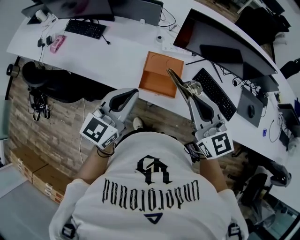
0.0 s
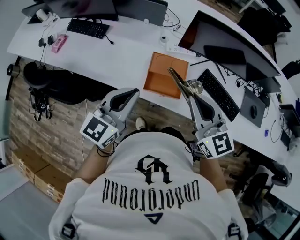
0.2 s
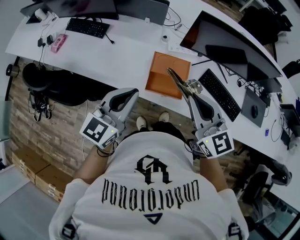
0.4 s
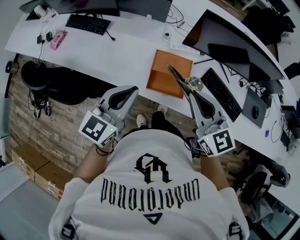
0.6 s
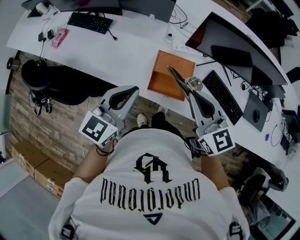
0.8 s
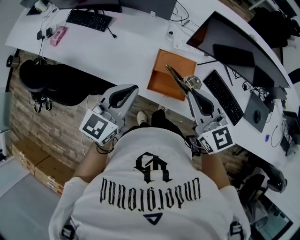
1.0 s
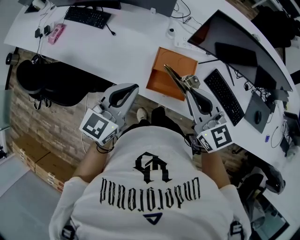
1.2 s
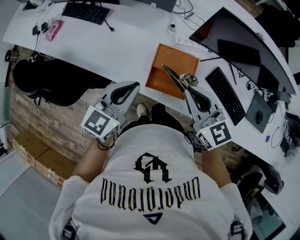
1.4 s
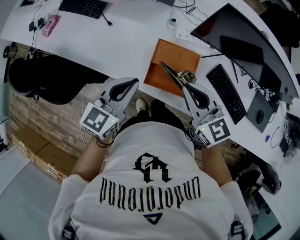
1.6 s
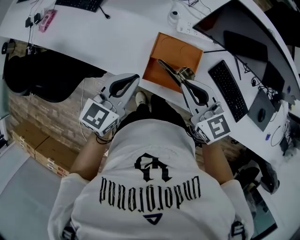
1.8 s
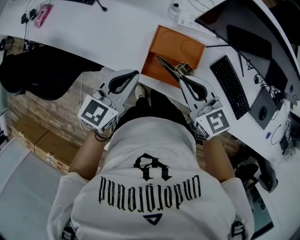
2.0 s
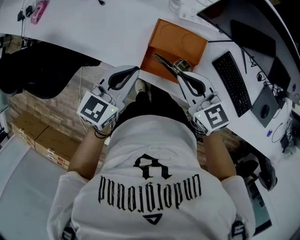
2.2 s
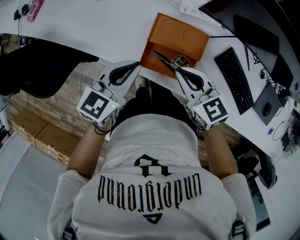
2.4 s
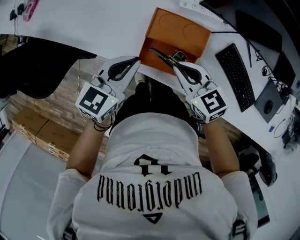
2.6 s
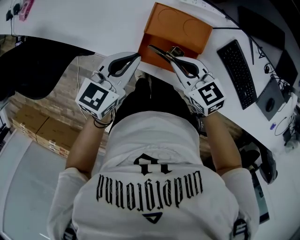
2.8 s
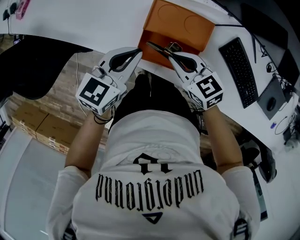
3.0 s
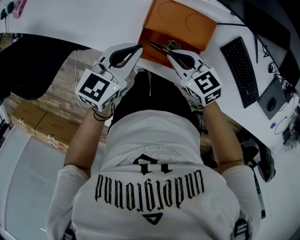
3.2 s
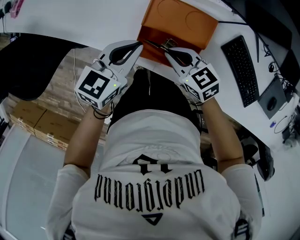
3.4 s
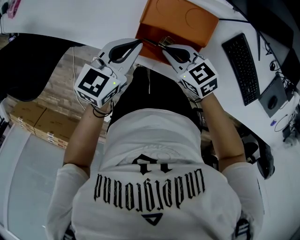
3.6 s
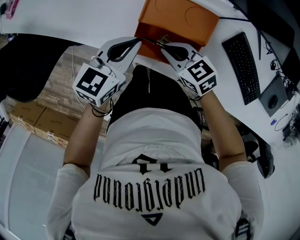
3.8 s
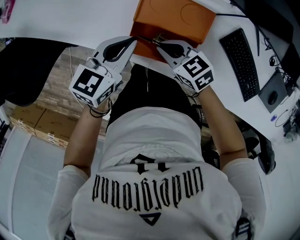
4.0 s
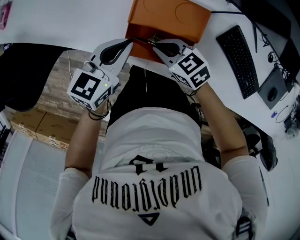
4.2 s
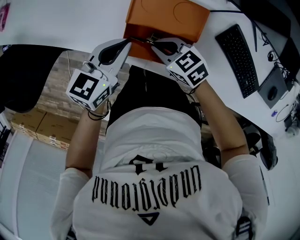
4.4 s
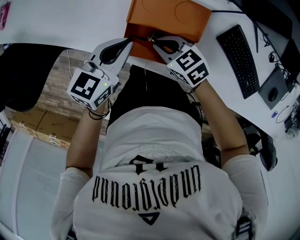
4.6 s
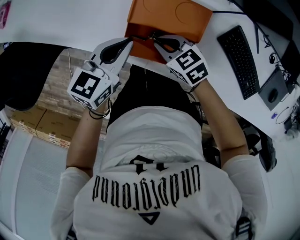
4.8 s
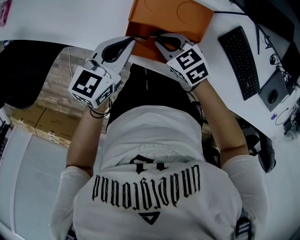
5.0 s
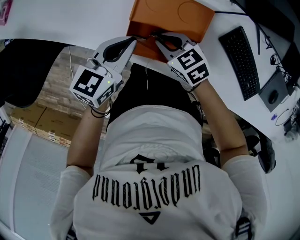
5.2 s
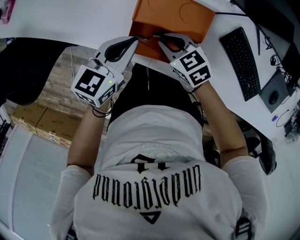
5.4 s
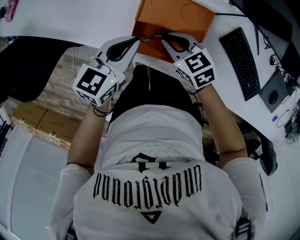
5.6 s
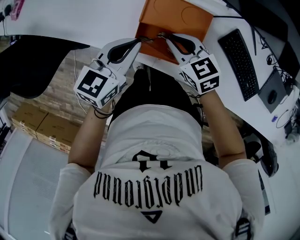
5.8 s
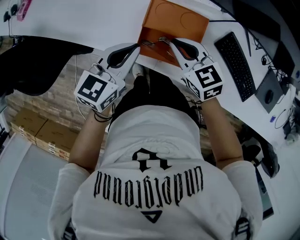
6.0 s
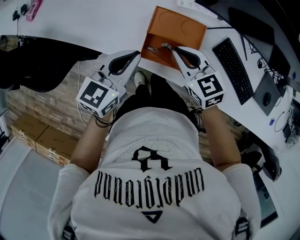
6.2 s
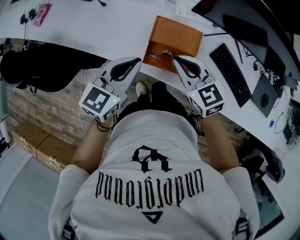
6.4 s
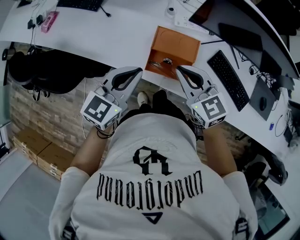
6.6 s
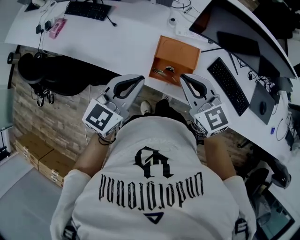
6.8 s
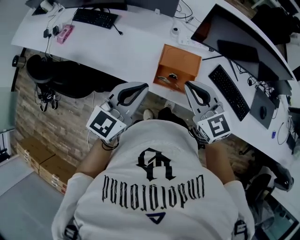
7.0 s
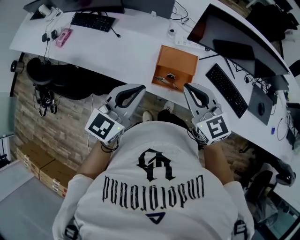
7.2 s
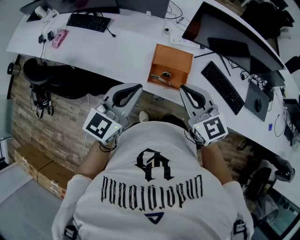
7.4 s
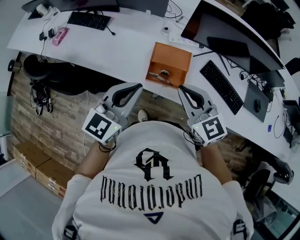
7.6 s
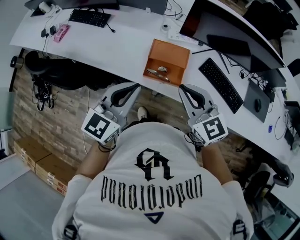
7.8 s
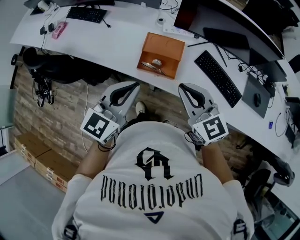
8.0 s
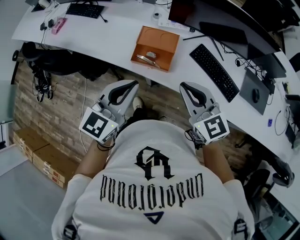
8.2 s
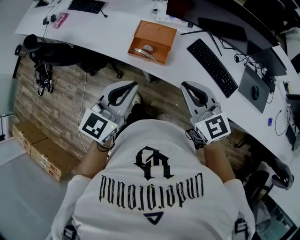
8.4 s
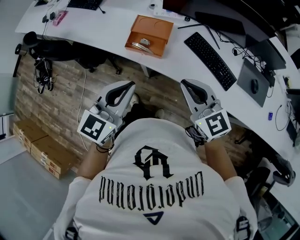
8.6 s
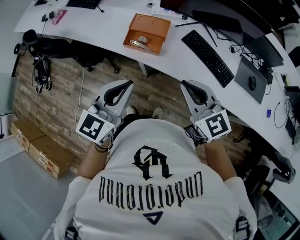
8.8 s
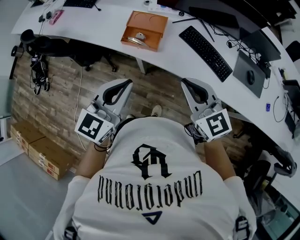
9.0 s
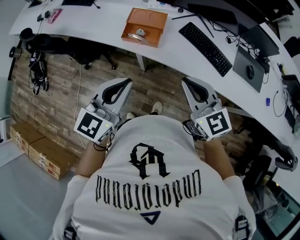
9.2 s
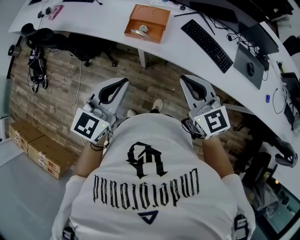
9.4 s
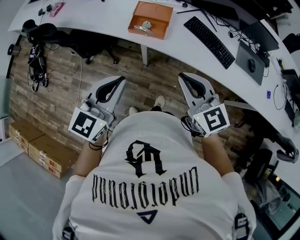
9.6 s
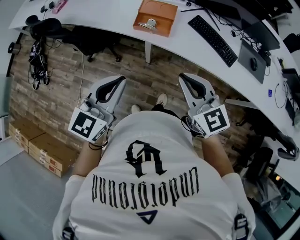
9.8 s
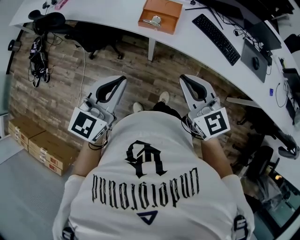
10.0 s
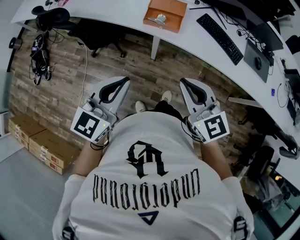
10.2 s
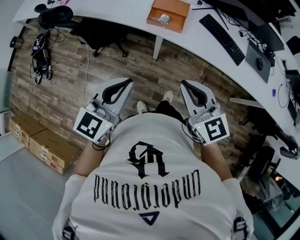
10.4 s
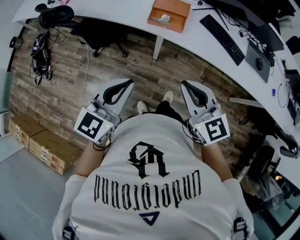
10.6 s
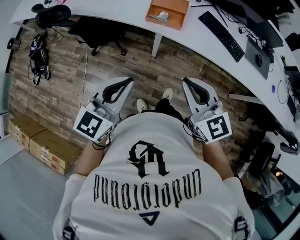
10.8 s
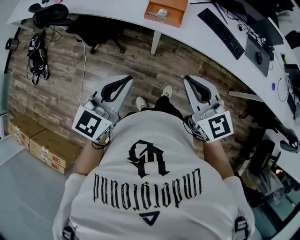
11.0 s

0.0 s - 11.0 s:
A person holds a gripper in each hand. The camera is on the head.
0.0 s - 1.6 s: Both grippers move downward and forward, roughly 15 cm.
1.6 s - 3.2 s: The grippers both shift downward by roughly 20 cm. The right gripper changes its angle by about 30 degrees.
3.2 s - 4.8 s: The right gripper shifts approximately 5 cm downward.
4.8 s - 6.2 s: The two grippers go approximately 15 cm upward. The right gripper changes its angle by roughly 20 degrees.
6.2 s - 7.8 s: Both grippers move upward and backward, some 25 cm. The right gripper rotates about 20 degrees.
7.8 s - 9.4 s: The left gripper heads backward, covering some 25 cm; the right gripper travels backward and to the right by some 25 cm.
9.4 s - 11.0 s: Both grippers travel together to the left and backward, roughly 15 cm.

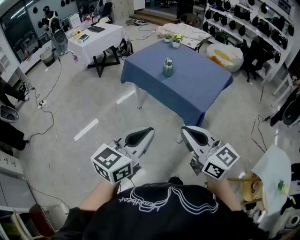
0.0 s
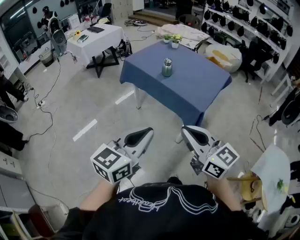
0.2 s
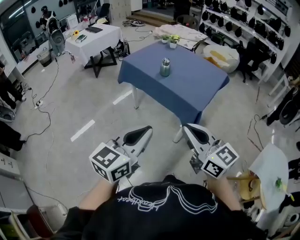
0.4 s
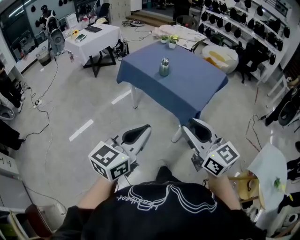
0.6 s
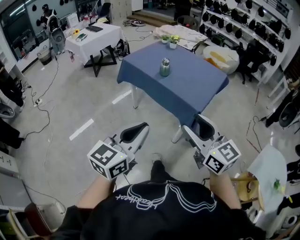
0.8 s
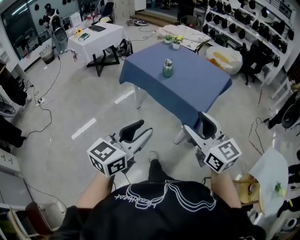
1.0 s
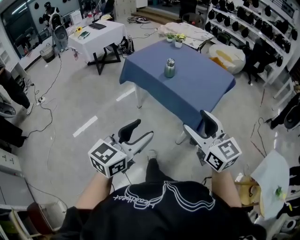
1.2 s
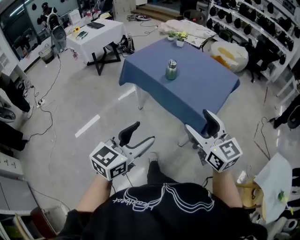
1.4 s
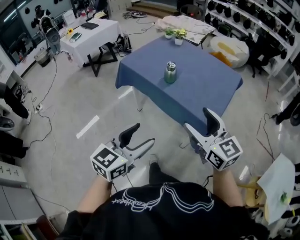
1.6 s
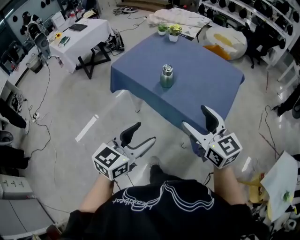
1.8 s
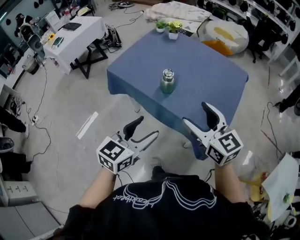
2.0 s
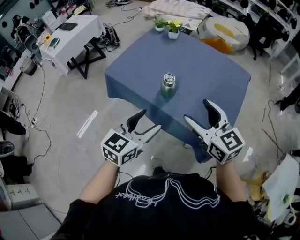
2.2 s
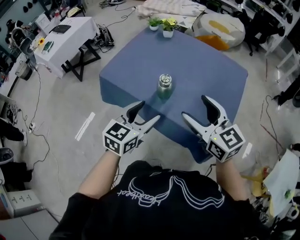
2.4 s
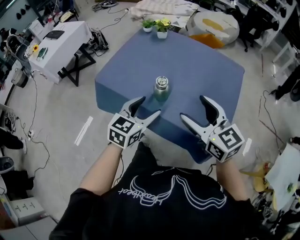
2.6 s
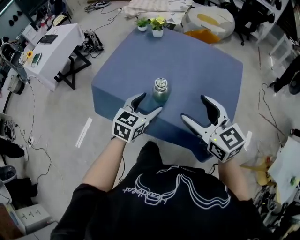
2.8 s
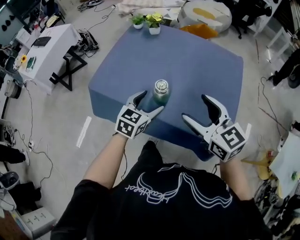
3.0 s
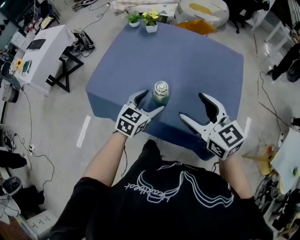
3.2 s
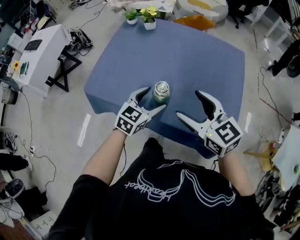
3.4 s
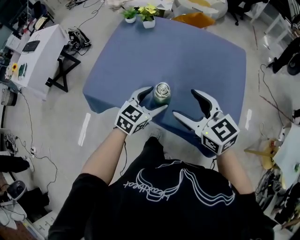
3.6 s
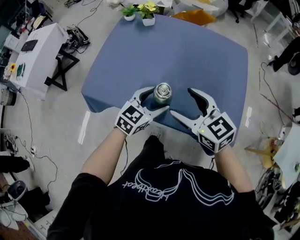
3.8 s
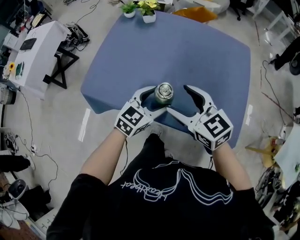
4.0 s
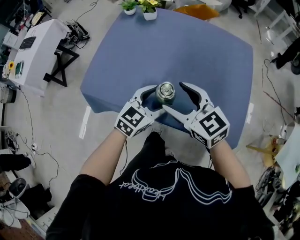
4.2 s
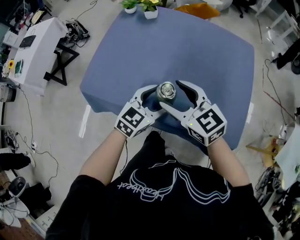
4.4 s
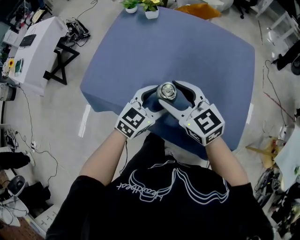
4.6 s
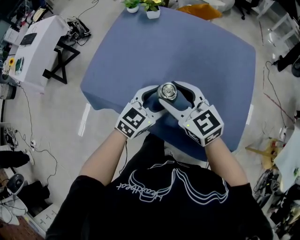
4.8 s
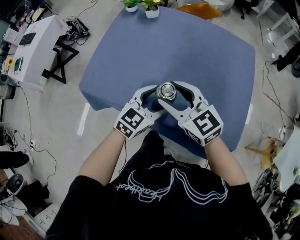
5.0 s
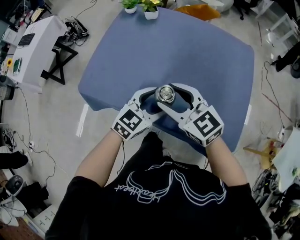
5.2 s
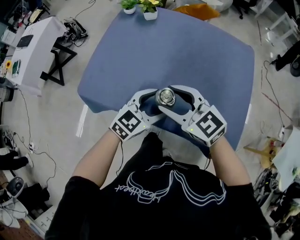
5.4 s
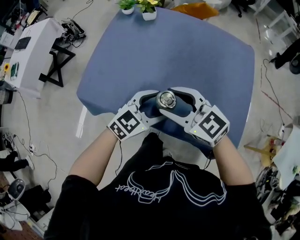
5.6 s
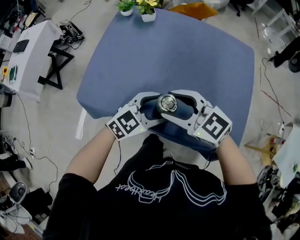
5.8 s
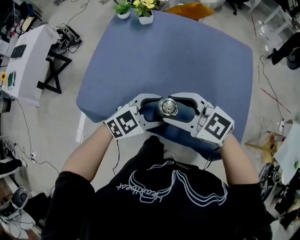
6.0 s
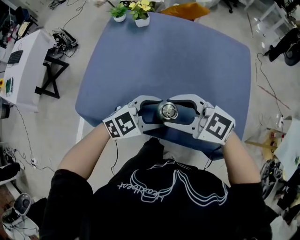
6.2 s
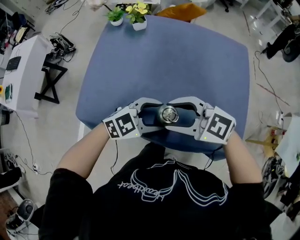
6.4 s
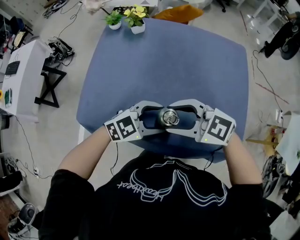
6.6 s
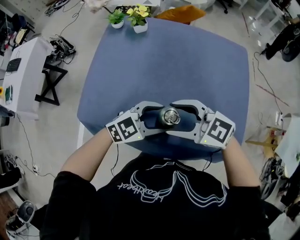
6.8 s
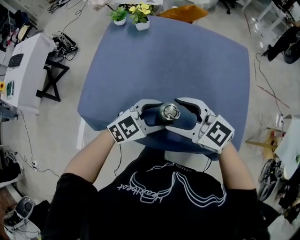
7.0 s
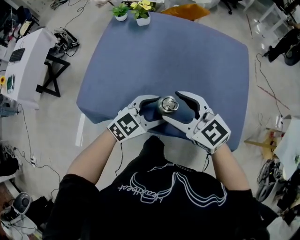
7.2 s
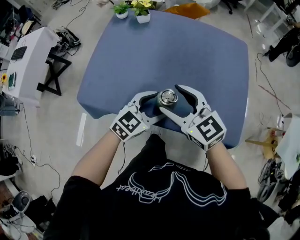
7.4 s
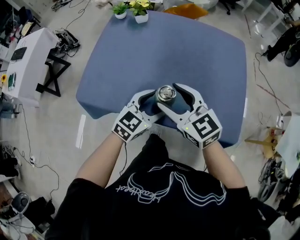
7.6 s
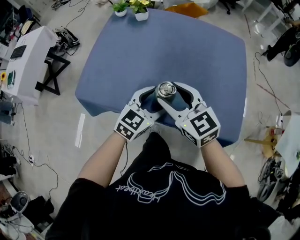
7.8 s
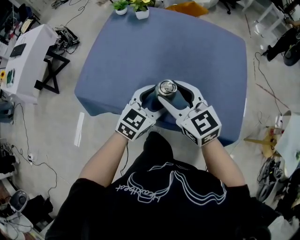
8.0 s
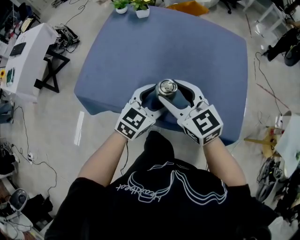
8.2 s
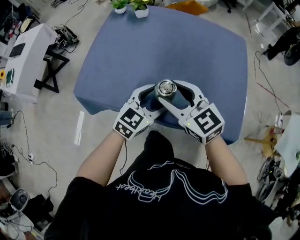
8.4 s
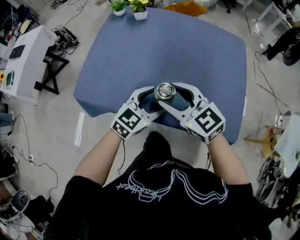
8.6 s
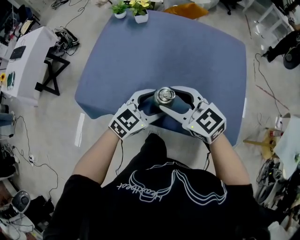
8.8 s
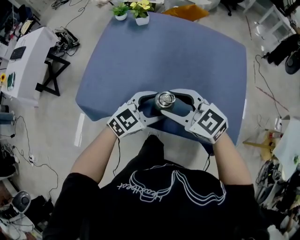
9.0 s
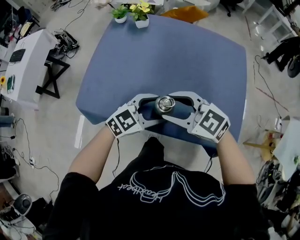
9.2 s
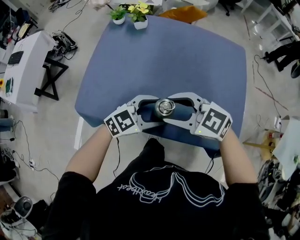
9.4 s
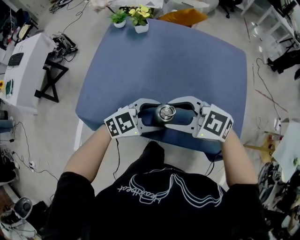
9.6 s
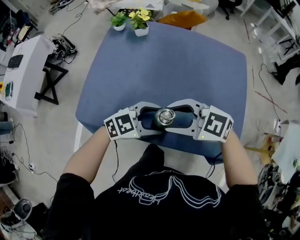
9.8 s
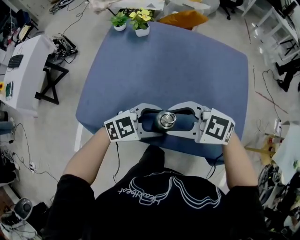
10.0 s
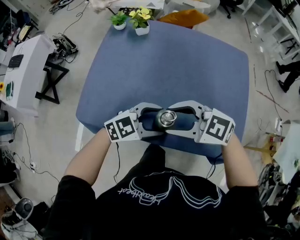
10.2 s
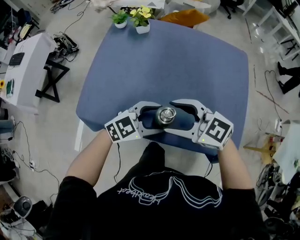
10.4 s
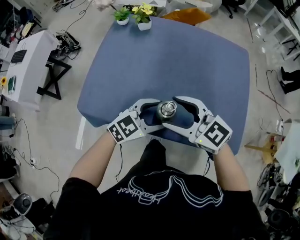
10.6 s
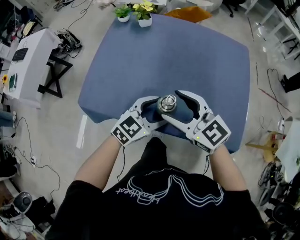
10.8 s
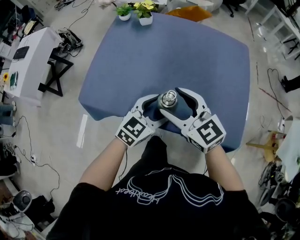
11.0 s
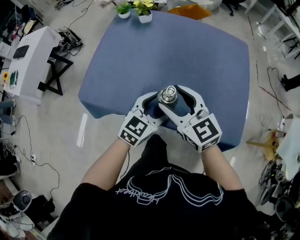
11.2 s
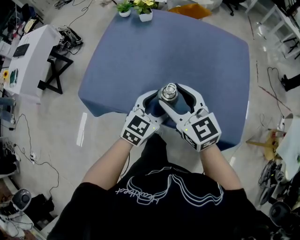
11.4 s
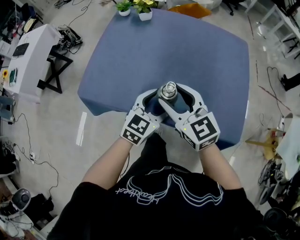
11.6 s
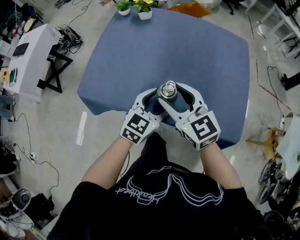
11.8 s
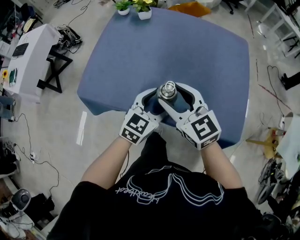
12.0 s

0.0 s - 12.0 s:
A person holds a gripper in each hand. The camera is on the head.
0.0 s - 1.6 s: The right gripper goes about 20 cm forward, and opens. The left gripper travels forward and downward by approximately 15 cm, and opens.
1.6 s - 3.0 s: The left gripper goes approximately 40 cm forward, and rotates roughly 20 degrees. Meanwhile the right gripper heads forward, covering some 25 cm.
3.0 s - 4.4 s: The right gripper shifts about 15 cm to the left, downward and forward.
4.4 s - 6.0 s: The left gripper rotates approximately 30 degrees.
6.0 s - 7.6 s: The right gripper swivels approximately 30 degrees. Meanwhile the left gripper changes its angle by roughly 20 degrees.
7.6 s - 9.0 s: There are only small adjustments of the grippers.
10.4 s - 12.0 s: The right gripper swivels roughly 30 degrees, while the left gripper swivels approximately 30 degrees.

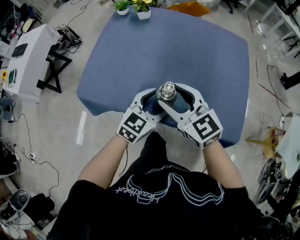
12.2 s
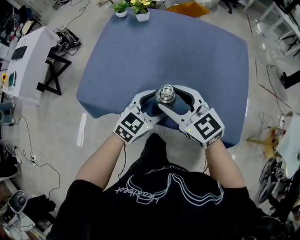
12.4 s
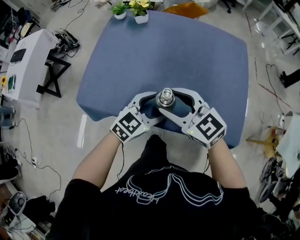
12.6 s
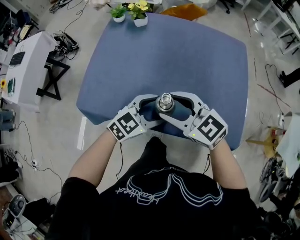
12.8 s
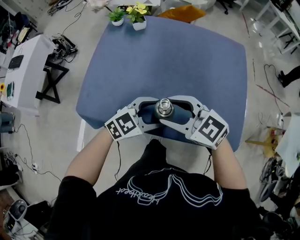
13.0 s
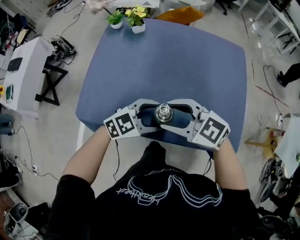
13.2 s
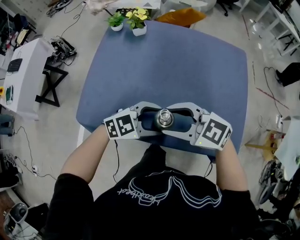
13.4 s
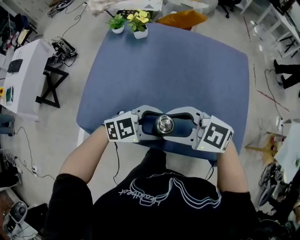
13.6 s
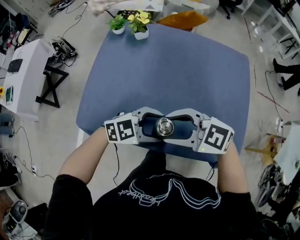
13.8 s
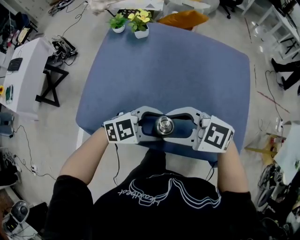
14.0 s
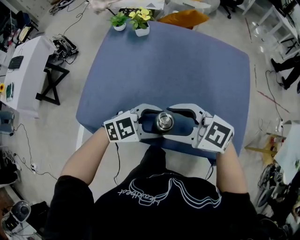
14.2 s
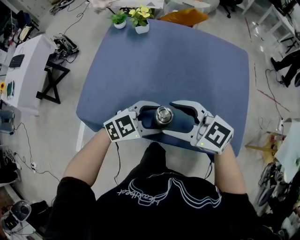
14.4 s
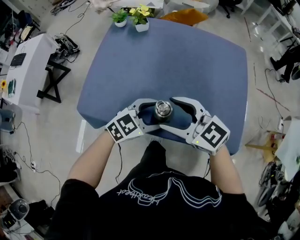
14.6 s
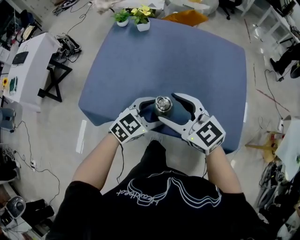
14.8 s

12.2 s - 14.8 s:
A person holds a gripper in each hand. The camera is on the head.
12.2 s - 13.4 s: The left gripper turns by roughly 40 degrees; the right gripper turns by some 30 degrees.
13.4 s - 14.8 s: The right gripper turns by about 20 degrees. The left gripper changes its angle by roughly 30 degrees.
